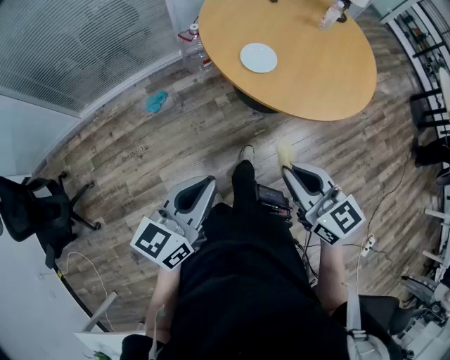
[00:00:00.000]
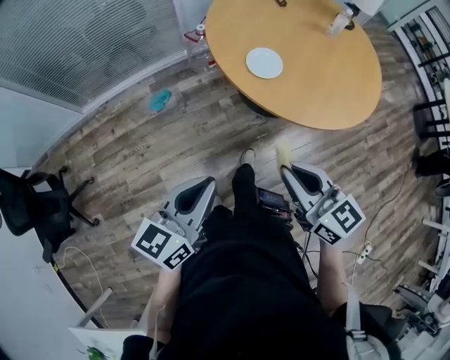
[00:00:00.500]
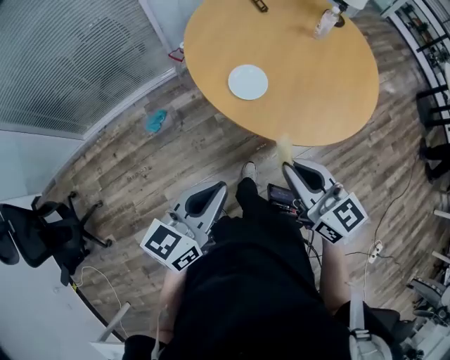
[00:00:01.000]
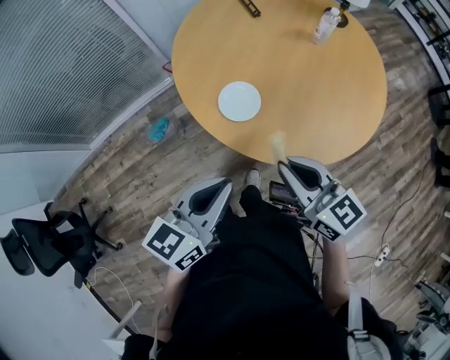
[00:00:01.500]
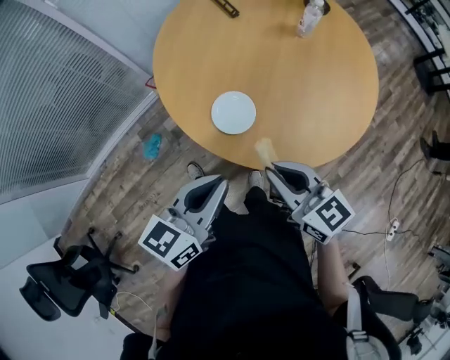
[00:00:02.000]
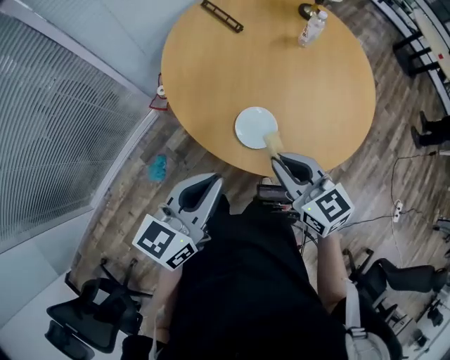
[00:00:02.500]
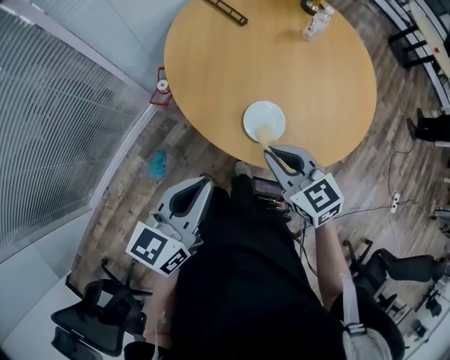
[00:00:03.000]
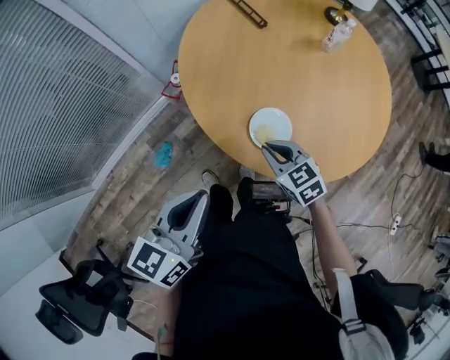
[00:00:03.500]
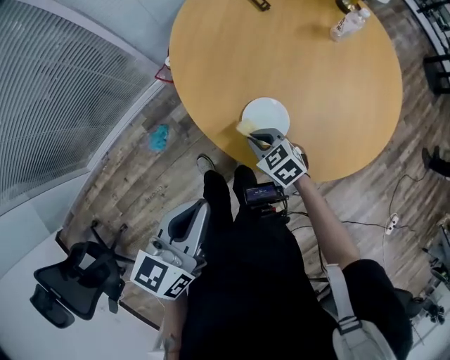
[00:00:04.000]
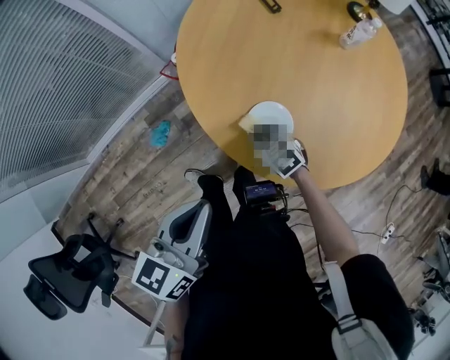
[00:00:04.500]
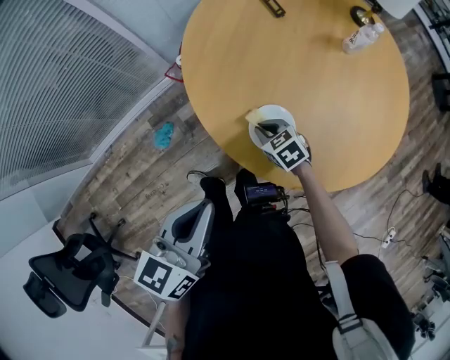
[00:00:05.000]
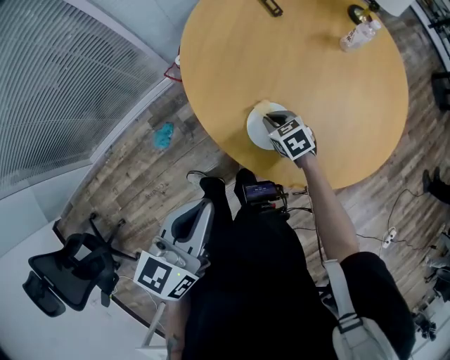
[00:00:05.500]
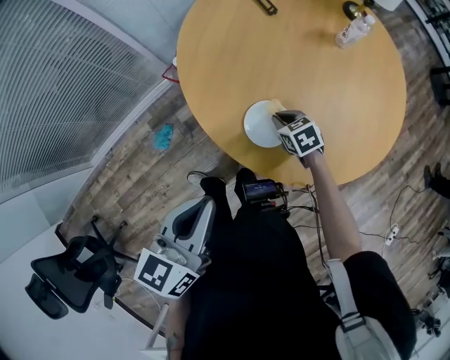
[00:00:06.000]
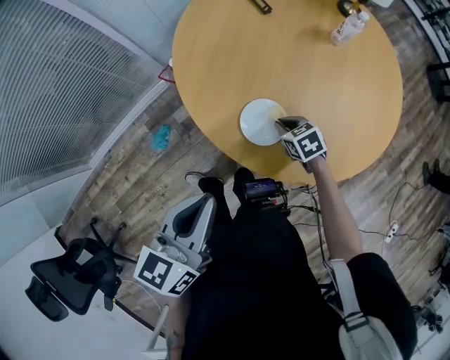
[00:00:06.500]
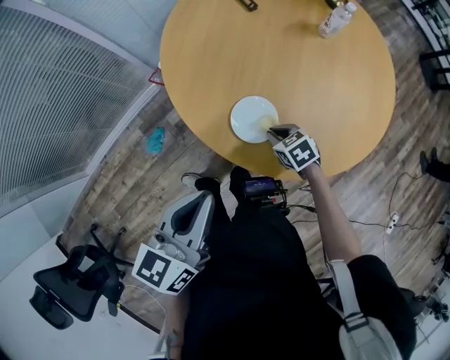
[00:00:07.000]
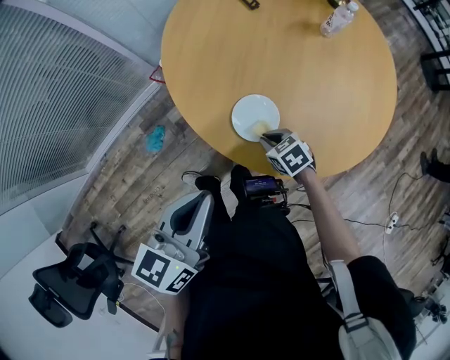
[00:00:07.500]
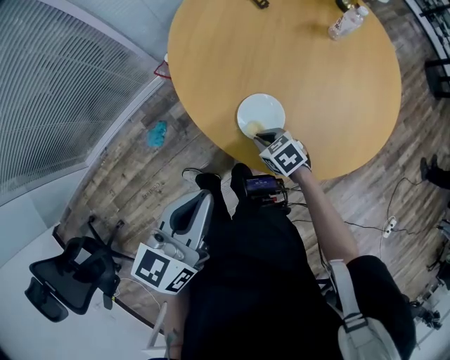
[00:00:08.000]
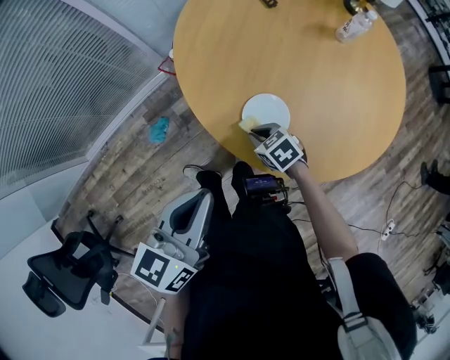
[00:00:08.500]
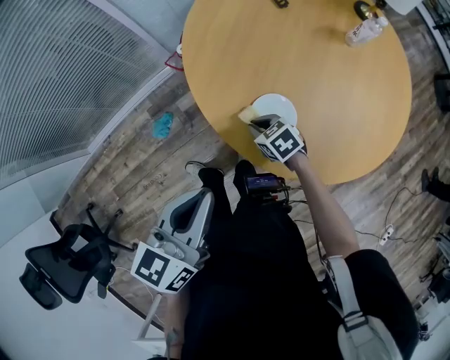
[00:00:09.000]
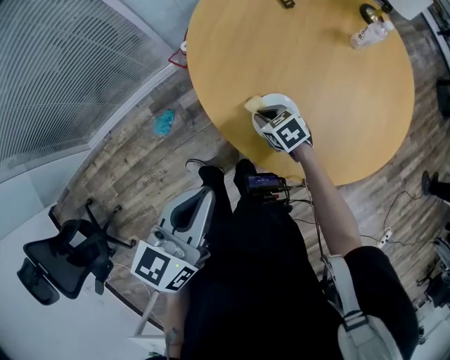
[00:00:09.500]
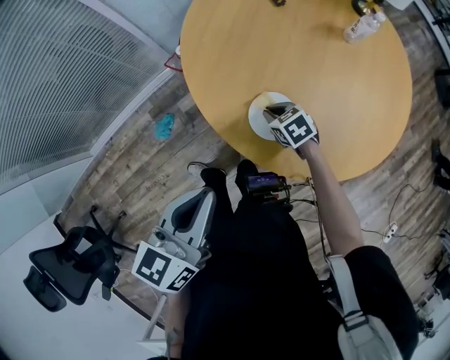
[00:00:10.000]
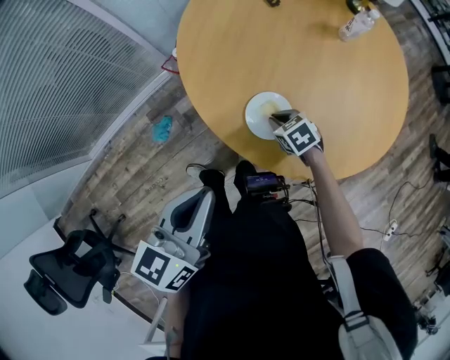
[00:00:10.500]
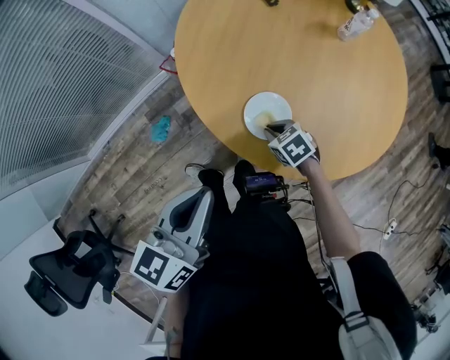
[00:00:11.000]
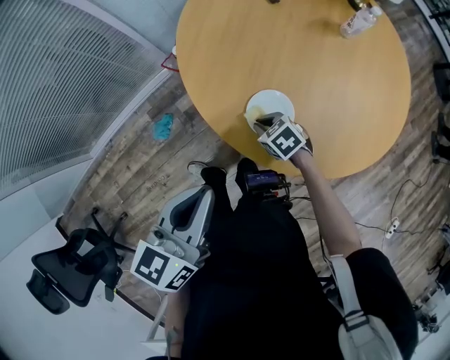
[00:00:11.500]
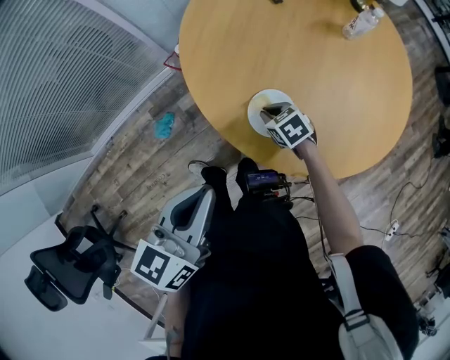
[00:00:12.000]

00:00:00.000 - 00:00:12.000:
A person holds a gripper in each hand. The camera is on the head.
00:00:00.000 - 00:00:02.000: The grippers both shift forward by roughly 30 cm.
00:00:02.000 - 00:00:04.000: The right gripper shifts some 25 cm downward, to the left and forward, and points its fingers approximately 30 degrees further downward. Meanwhile the left gripper shifts roughly 15 cm to the left.
00:00:04.000 - 00:00:06.000: The right gripper moves to the right and forward, about 10 cm.
00:00:06.000 - 00:00:08.000: The right gripper shifts roughly 10 cm backward and to the left.
00:00:08.000 - 00:00:10.000: The right gripper moves forward, roughly 10 cm.
00:00:10.000 - 00:00:12.000: There are only small adjustments of the grippers.

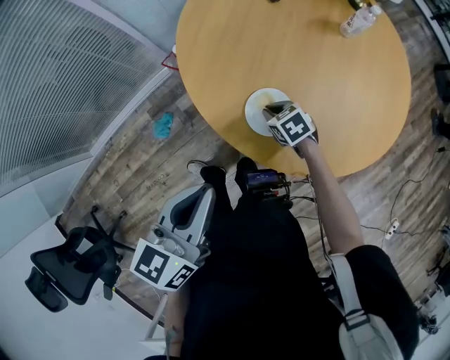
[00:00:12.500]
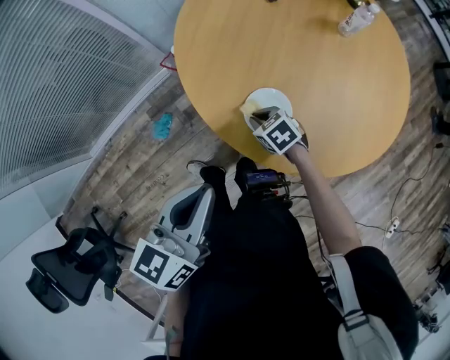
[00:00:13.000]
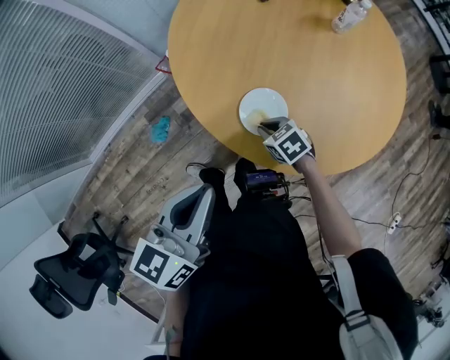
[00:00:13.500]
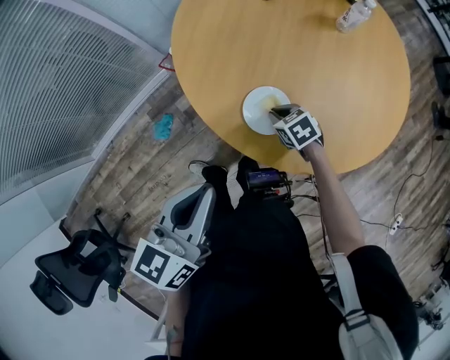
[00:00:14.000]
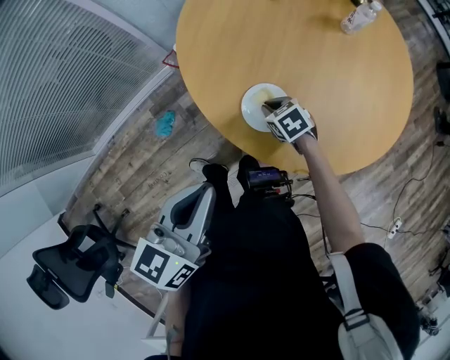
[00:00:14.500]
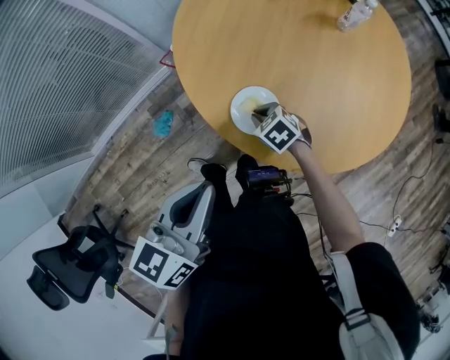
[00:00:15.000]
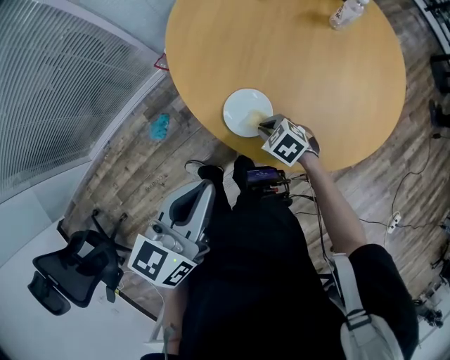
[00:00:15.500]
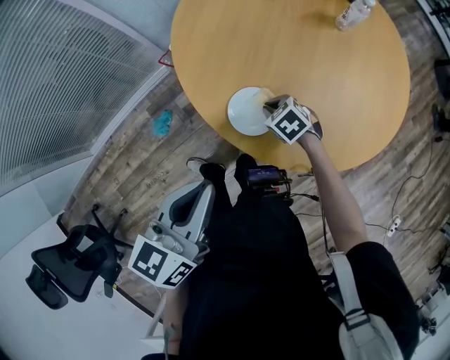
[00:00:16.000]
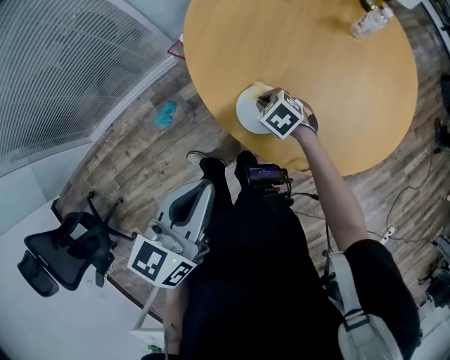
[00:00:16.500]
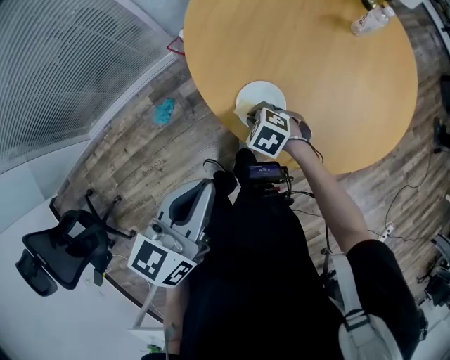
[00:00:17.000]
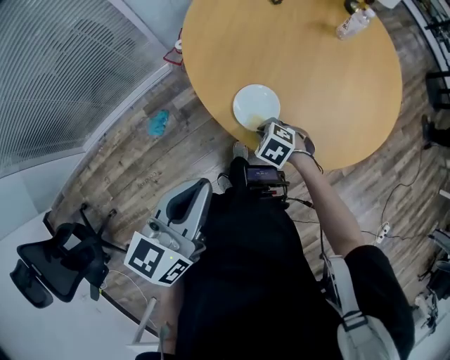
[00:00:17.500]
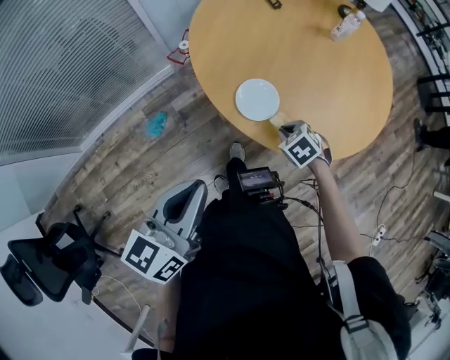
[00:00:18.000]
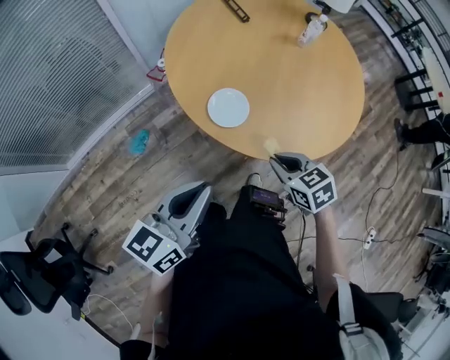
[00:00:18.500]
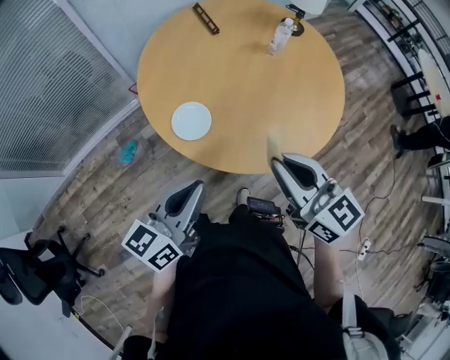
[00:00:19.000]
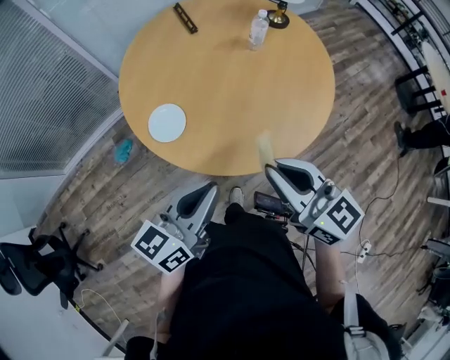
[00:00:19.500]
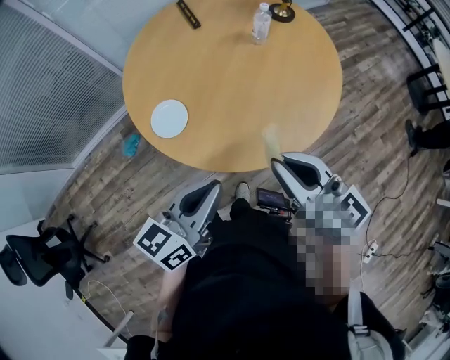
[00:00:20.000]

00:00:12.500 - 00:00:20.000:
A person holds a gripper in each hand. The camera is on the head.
00:00:12.500 - 00:00:14.500: There are only small adjustments of the grippers.
00:00:14.500 - 00:00:16.500: The right gripper reaches roughly 5 cm backward, then returns.
00:00:16.500 - 00:00:18.000: The right gripper moves approximately 15 cm; the left gripper shifts by roughly 10 cm.
00:00:18.000 - 00:00:20.000: The left gripper travels to the right by some 40 cm, while the right gripper heads upward and to the right, covering approximately 40 cm, and angles its fingers upward, by roughly 70 degrees.

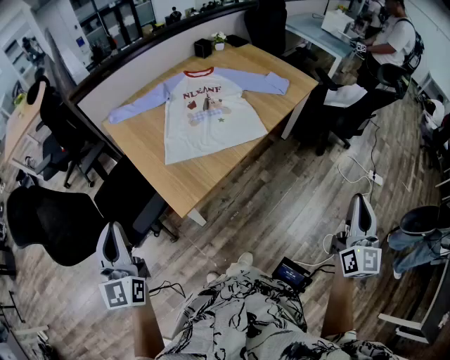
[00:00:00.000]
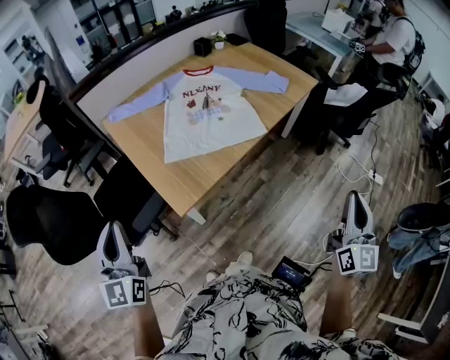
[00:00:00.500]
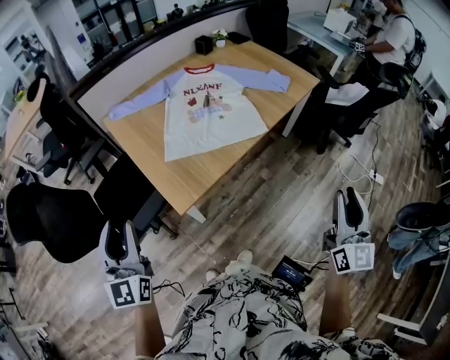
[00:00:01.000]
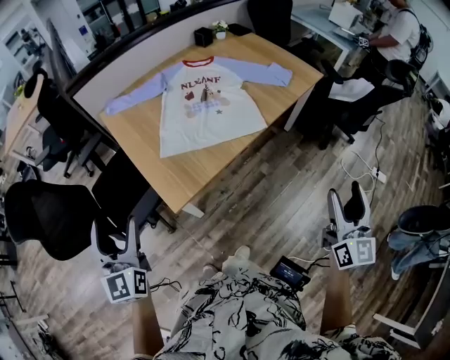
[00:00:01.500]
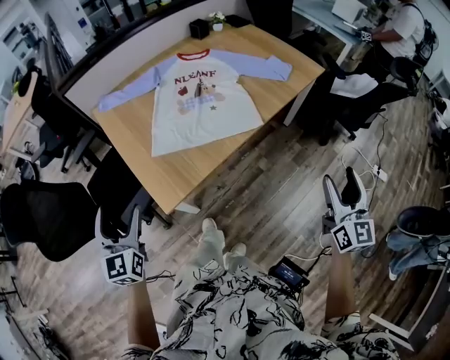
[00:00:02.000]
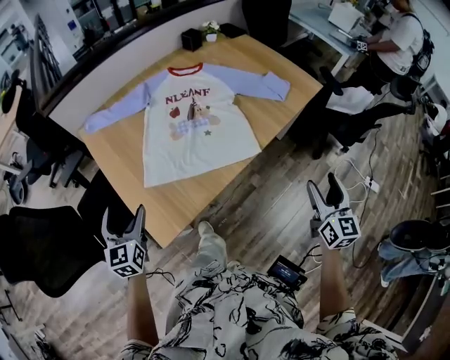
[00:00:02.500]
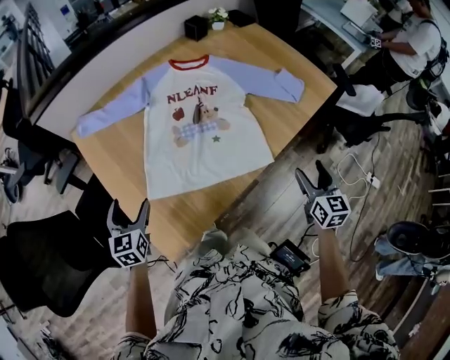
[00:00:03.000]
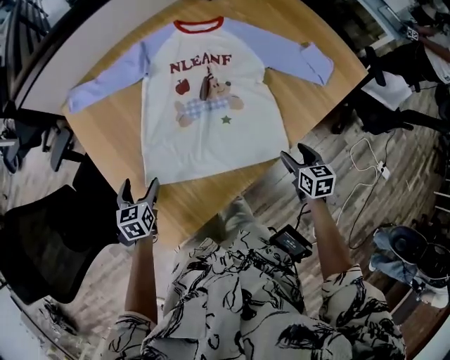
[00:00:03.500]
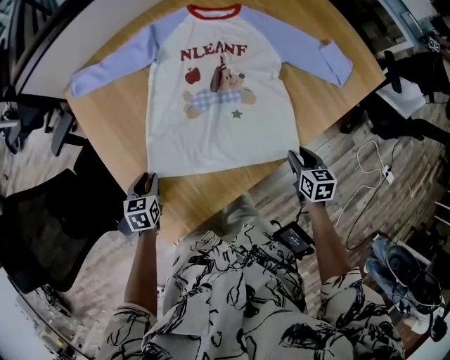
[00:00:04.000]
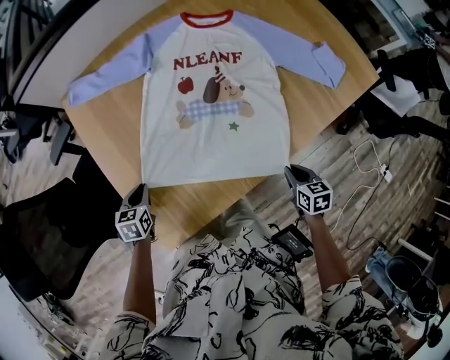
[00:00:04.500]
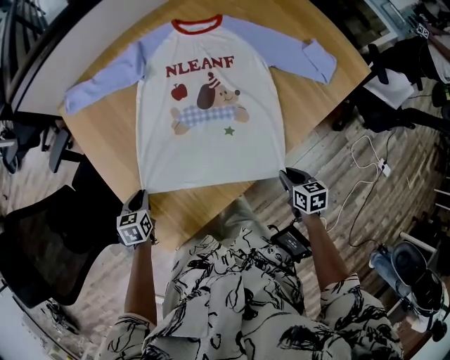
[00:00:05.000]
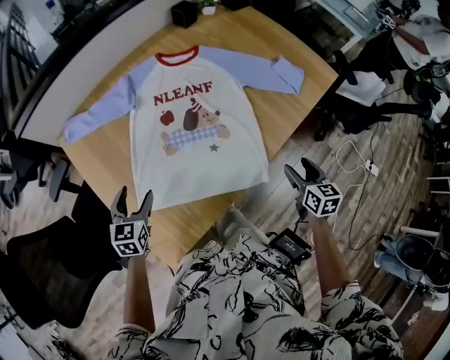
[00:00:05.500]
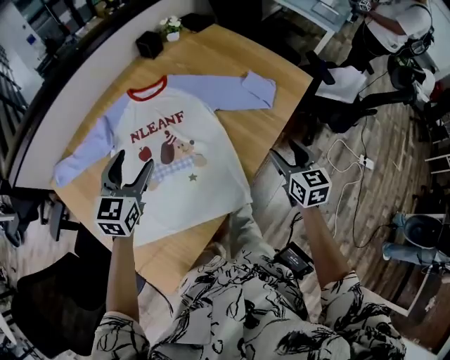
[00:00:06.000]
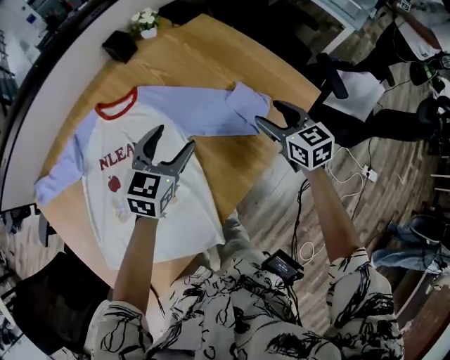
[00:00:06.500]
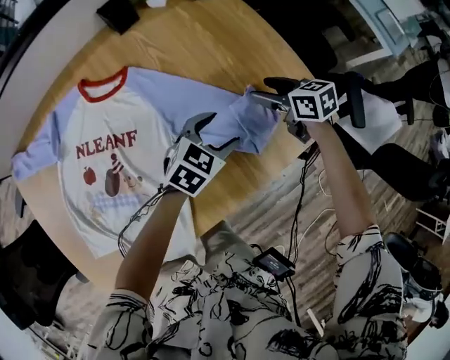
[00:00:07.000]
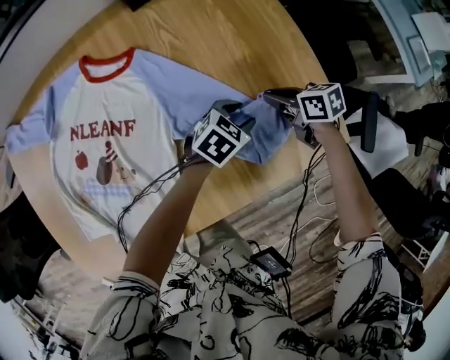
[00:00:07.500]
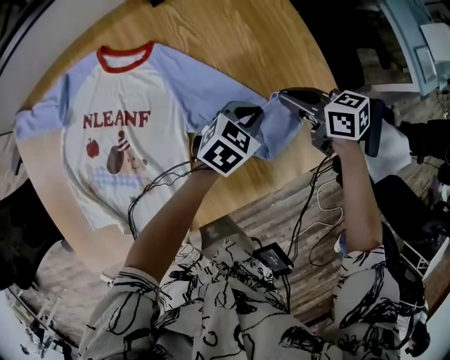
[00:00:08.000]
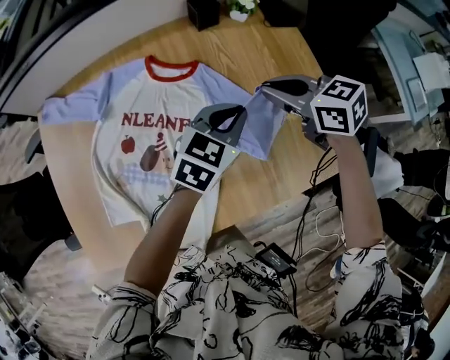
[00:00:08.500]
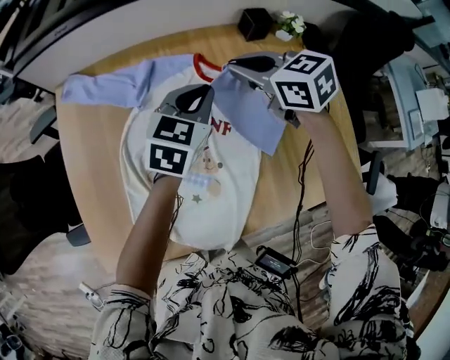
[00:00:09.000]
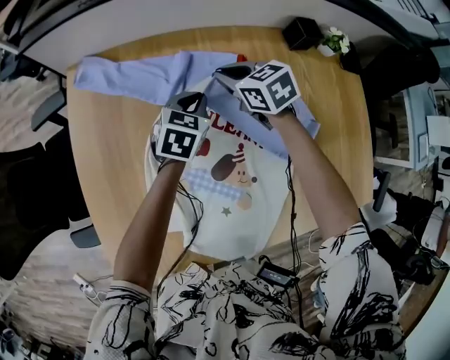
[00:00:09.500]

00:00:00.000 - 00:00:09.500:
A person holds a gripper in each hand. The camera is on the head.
00:00:00.000 - 00:00:02.000: The right gripper is displaced forward and downward by about 15 cm, and opens its fingers. Meanwhile the left gripper travels downward, forward and to the right by roughly 15 cm, and opens up.
00:00:02.000 - 00:00:04.000: The left gripper is displaced downward and forward by roughly 40 cm, tips its fingers downward by roughly 40 degrees, and closes its fingers; the right gripper goes about 50 cm forward and downward, points its fingers some 50 degrees further downward, and closes up.
00:00:04.000 - 00:00:05.500: The right gripper travels upward and to the right by approximately 15 cm, and opens, while the left gripper heads upward and forward, covering approximately 15 cm, swivels some 20 degrees, and opens.
00:00:05.500 - 00:00:07.500: The right gripper shifts by roughly 50 cm, changes its angle by roughly 50 degrees, and closes up; the left gripper shifts by approximately 70 cm, and changes its angle by some 30 degrees.
00:00:07.500 - 00:00:09.500: The two grippers travel together, roughly 60 cm. The left gripper swivels approximately 40 degrees, and closes its fingers; the right gripper twists approximately 40 degrees counterclockwise, seen from behind.
